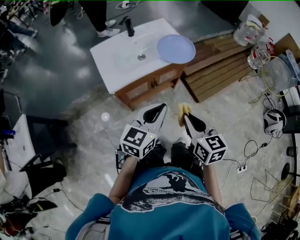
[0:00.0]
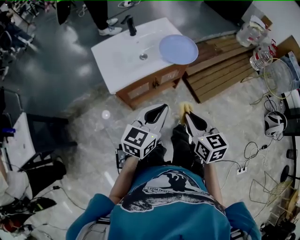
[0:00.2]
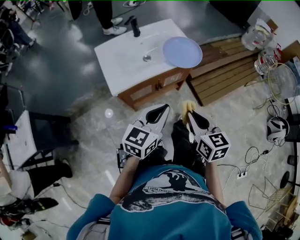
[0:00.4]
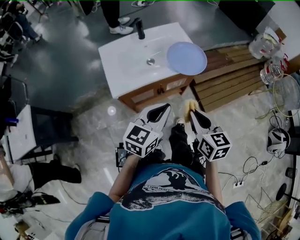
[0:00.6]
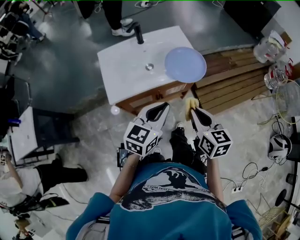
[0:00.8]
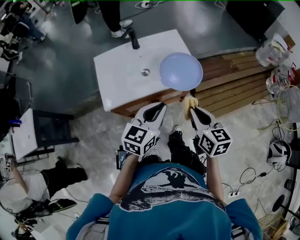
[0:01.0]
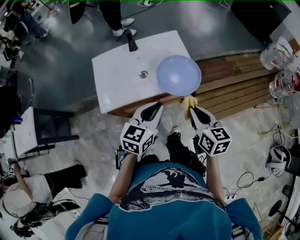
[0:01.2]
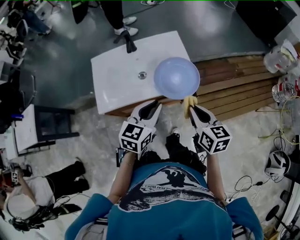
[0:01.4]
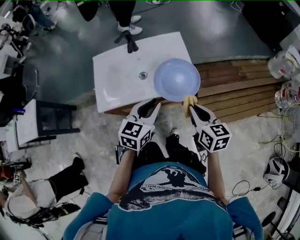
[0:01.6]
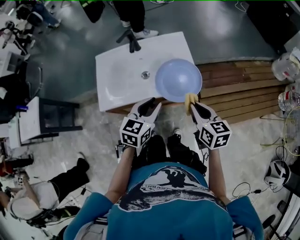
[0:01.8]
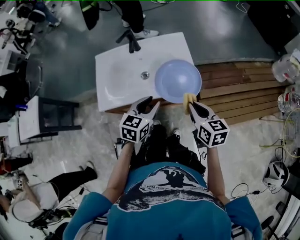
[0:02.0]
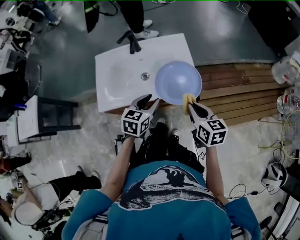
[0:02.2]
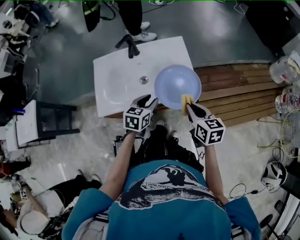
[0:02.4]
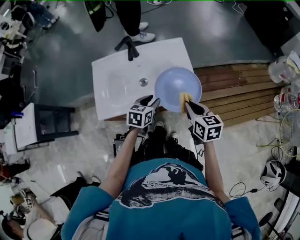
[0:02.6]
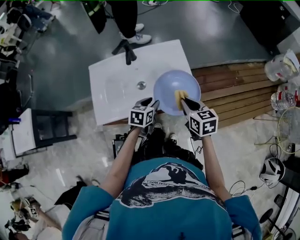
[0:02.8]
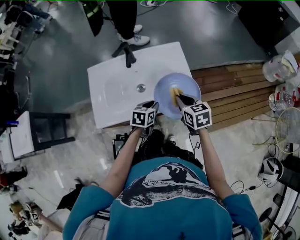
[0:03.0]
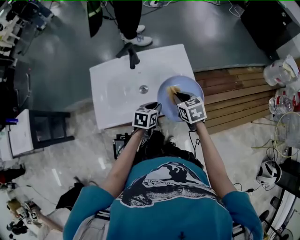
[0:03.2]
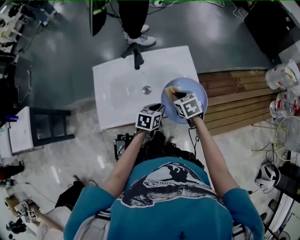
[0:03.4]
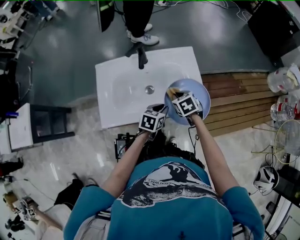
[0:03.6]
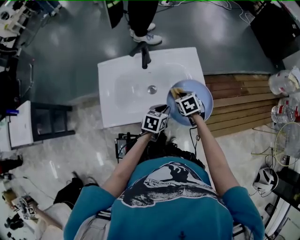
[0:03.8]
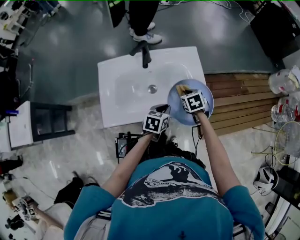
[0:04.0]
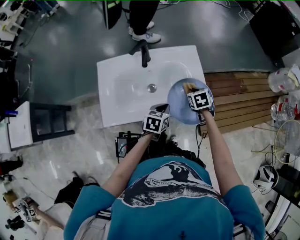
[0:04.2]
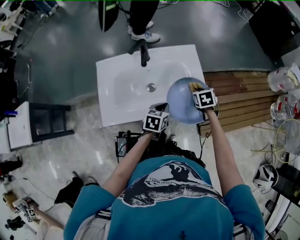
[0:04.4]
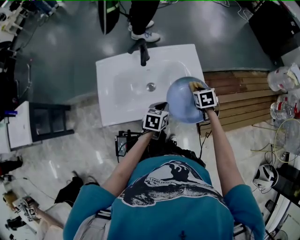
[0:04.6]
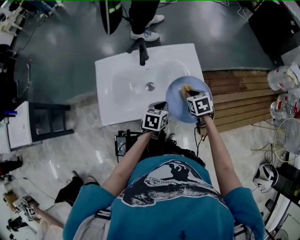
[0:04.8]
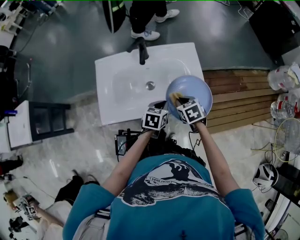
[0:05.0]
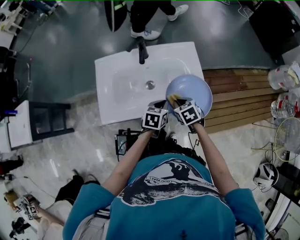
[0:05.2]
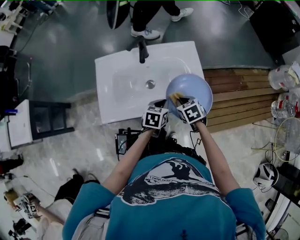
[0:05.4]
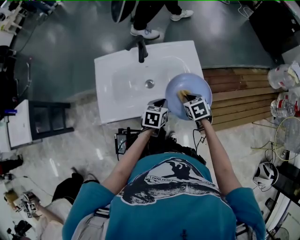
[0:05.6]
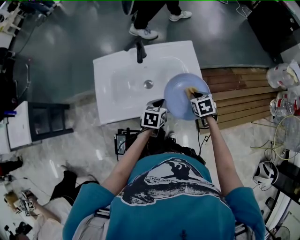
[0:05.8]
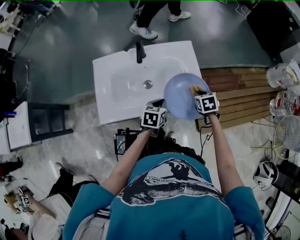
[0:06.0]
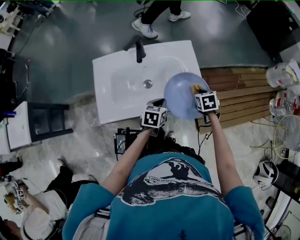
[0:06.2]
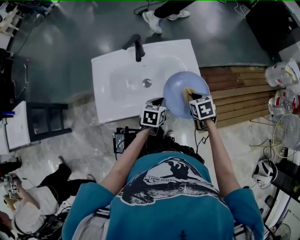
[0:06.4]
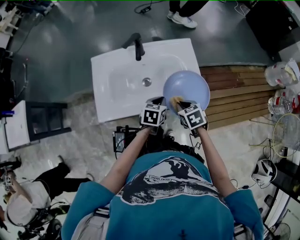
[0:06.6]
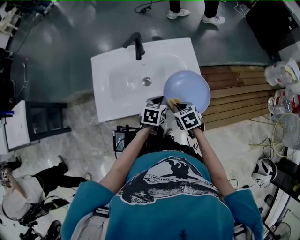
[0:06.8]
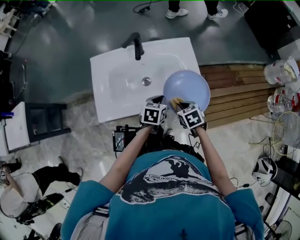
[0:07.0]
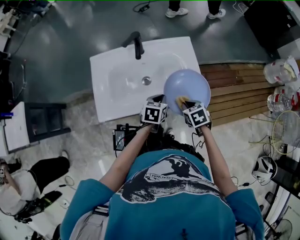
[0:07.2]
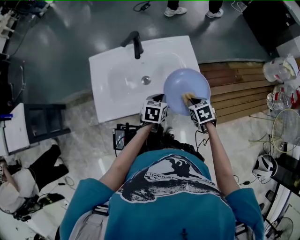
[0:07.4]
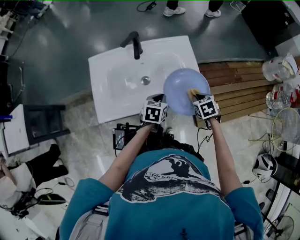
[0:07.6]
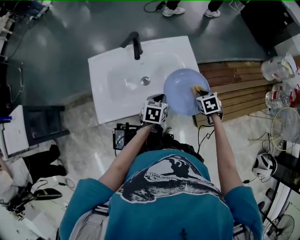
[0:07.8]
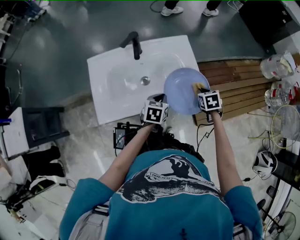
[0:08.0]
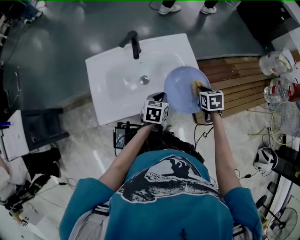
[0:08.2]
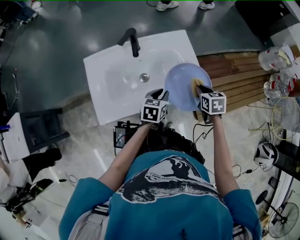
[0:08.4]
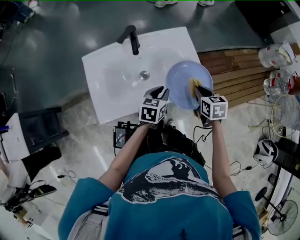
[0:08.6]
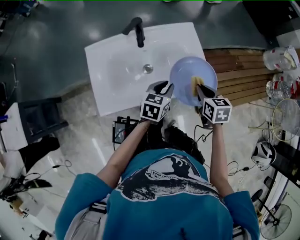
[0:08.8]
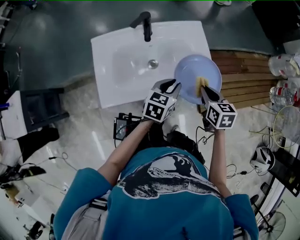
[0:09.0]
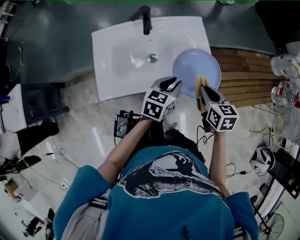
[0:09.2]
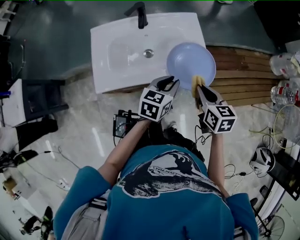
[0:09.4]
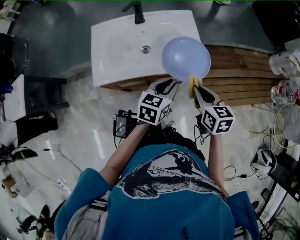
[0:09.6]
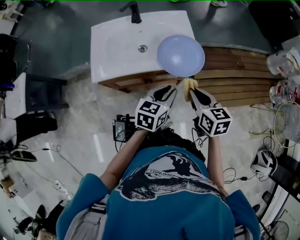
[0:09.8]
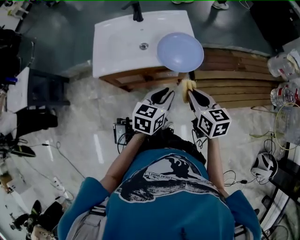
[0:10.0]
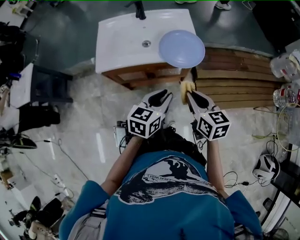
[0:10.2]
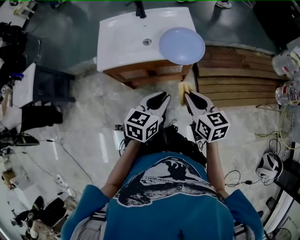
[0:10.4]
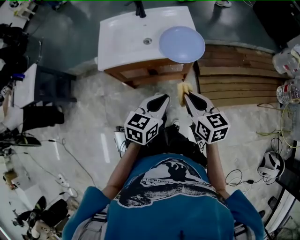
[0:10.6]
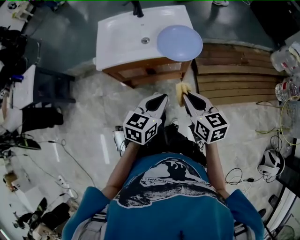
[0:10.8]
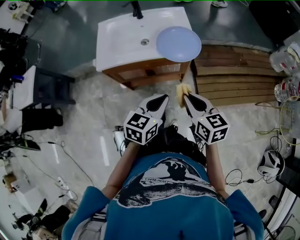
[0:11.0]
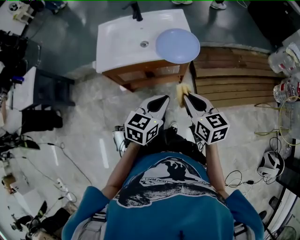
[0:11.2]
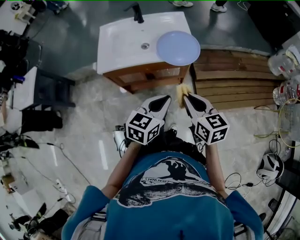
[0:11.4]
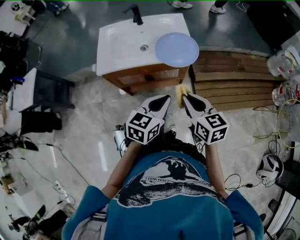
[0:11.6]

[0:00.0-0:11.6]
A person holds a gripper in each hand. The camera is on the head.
0.0 to 1.4 s: The left gripper heads forward, covering some 25 cm, and swivels about 20 degrees; the right gripper travels forward and to the right by approximately 30 cm.
1.4 to 2.8 s: The right gripper goes about 15 cm forward and downward. The left gripper travels downward and forward by approximately 20 cm, and rotates some 20 degrees.
2.8 to 4.4 s: The right gripper goes some 15 cm forward and downward, and turns by some 30 degrees. Meanwhile the left gripper closes up.
4.4 to 5.8 s: The right gripper reaches approximately 10 cm to the left, then returns.
5.8 to 7.2 s: The right gripper heads backward, covering roughly 10 cm, and goes to the left and returns, approximately 10 cm each way.
7.2 to 8.8 s: The right gripper shifts some 10 cm upward, travels to the right and back again, roughly 10 cm each way, and swivels roughly 30 degrees. The left gripper heads upward, covering about 5 cm.
8.8 to 10.2 s: Both grippers move backward, roughly 25 cm. The right gripper rotates approximately 20 degrees.
10.2 to 11.6 s: The left gripper shifts by approximately 5 cm.

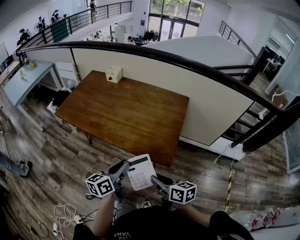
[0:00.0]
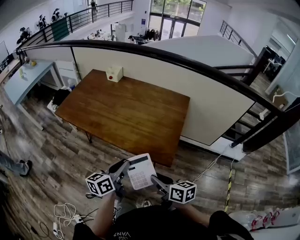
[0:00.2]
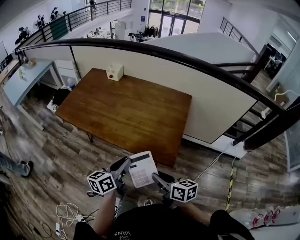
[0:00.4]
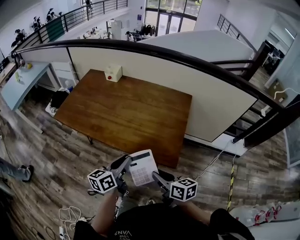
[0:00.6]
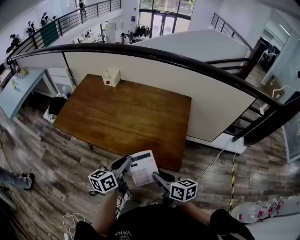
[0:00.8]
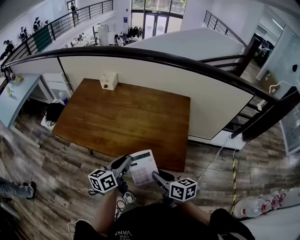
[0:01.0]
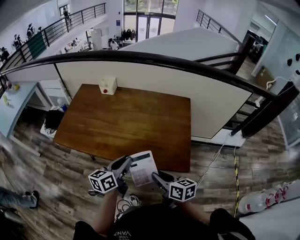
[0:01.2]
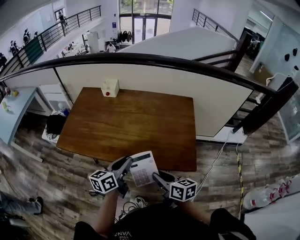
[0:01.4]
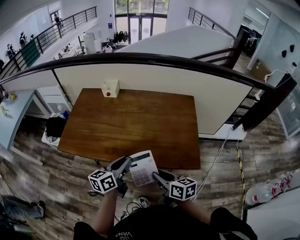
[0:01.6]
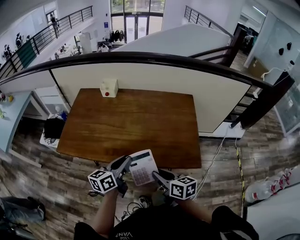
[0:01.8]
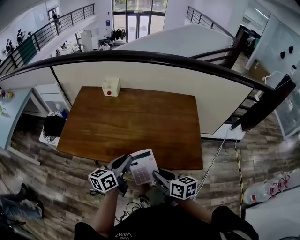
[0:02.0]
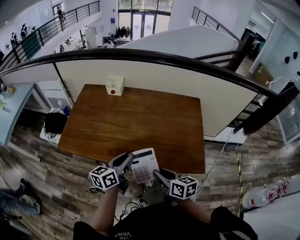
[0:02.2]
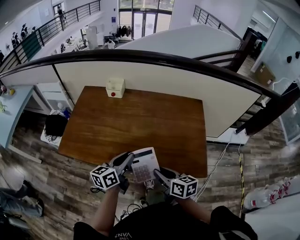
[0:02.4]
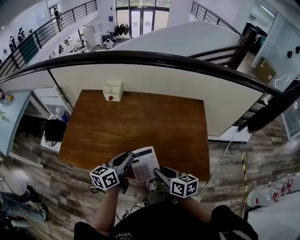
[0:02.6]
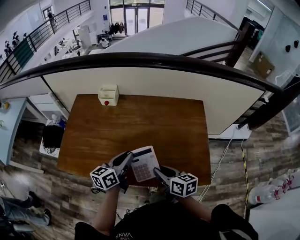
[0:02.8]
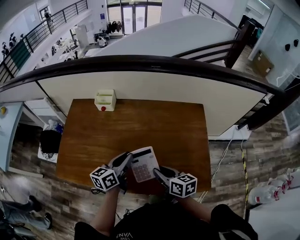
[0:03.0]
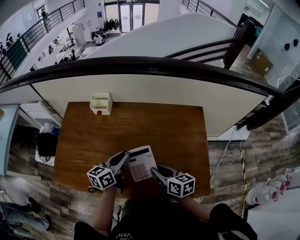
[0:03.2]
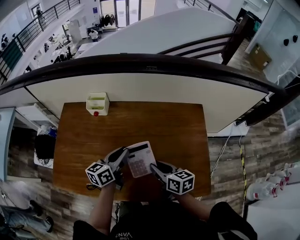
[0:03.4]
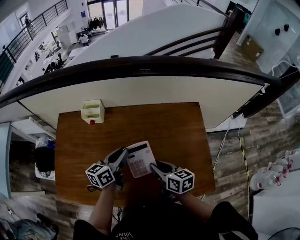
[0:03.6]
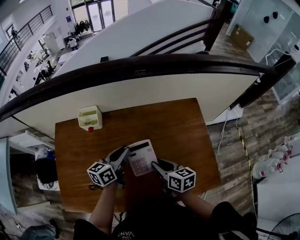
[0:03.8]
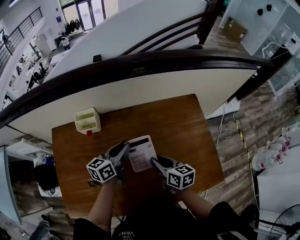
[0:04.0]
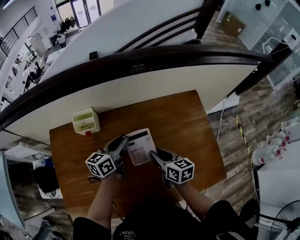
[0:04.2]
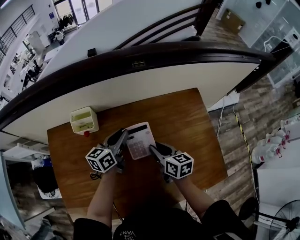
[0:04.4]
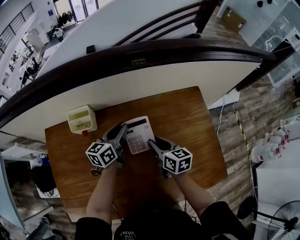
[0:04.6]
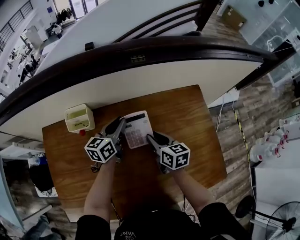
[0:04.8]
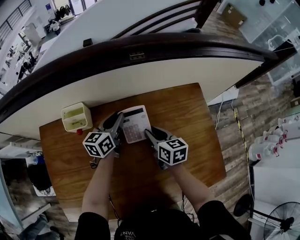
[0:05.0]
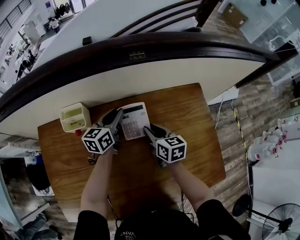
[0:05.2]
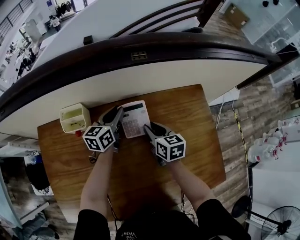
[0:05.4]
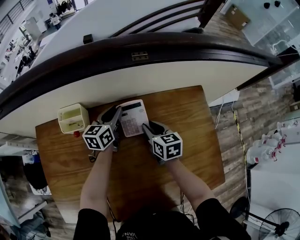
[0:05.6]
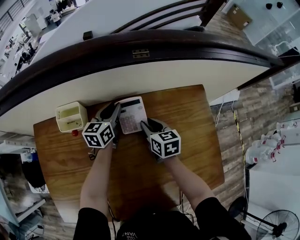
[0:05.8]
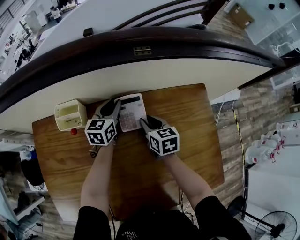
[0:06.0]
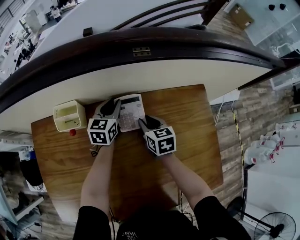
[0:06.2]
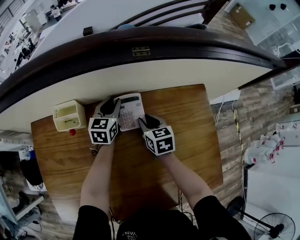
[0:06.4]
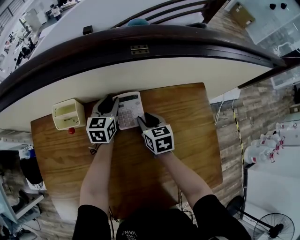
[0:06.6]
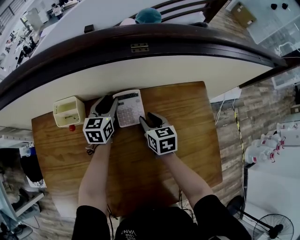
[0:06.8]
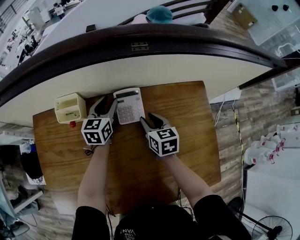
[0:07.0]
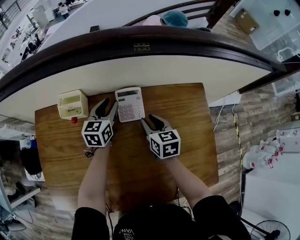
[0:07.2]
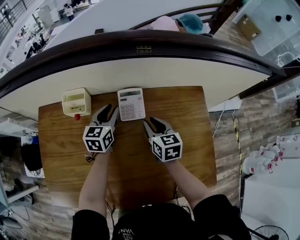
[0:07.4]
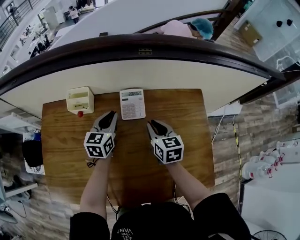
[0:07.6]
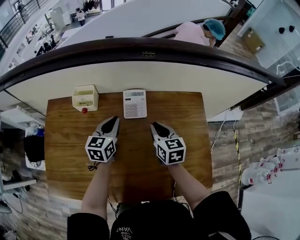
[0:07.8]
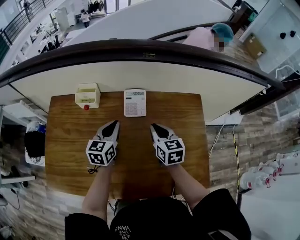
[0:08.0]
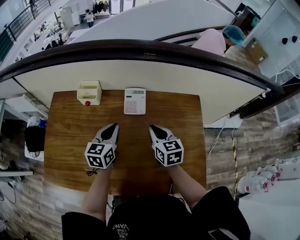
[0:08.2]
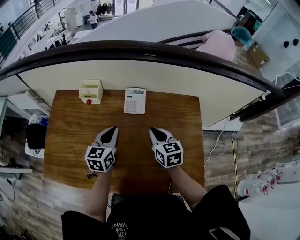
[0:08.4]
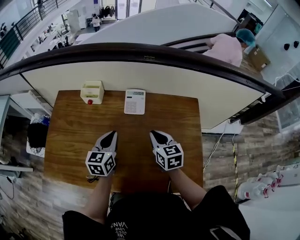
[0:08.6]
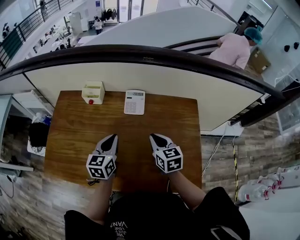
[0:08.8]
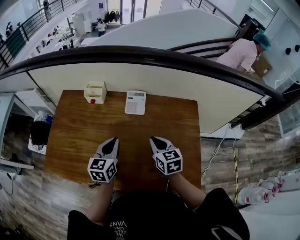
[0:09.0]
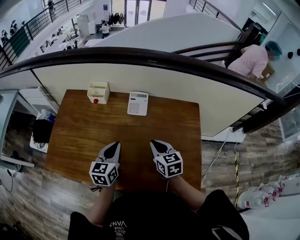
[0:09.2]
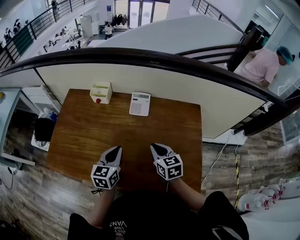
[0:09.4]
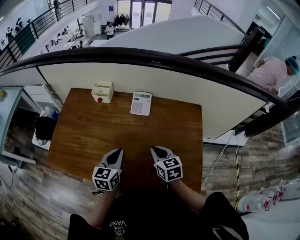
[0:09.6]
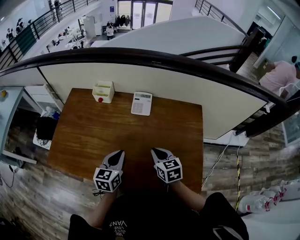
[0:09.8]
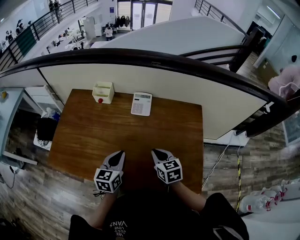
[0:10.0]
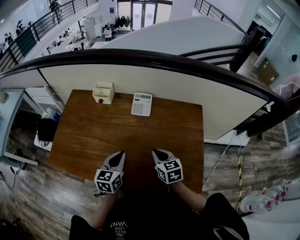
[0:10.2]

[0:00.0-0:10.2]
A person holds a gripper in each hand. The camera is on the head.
0.0 to 1.4 s: The right gripper moves to the left and forward, some 20 cm; the left gripper travels forward and to the left by about 20 cm.
1.4 to 3.0 s: The two grippers go some 20 cm forward.
3.0 to 4.4 s: The grippers both shift forward by roughly 20 cm. The right gripper turns by some 20 degrees.
4.4 to 5.8 s: The two grippers go some 15 cm forward and downward.
5.8 to 7.2 s: The grippers stay close to where they were, moving slightly.
7.2 to 8.8 s: The right gripper goes some 15 cm backward and upward, and closes its fingers. Meanwhile the left gripper goes approximately 25 cm backward, and closes.
8.8 to 10.2 s: The grippers both shift backward by approximately 10 cm.

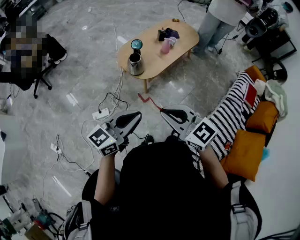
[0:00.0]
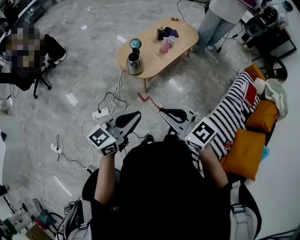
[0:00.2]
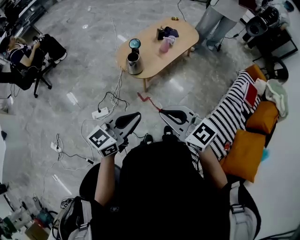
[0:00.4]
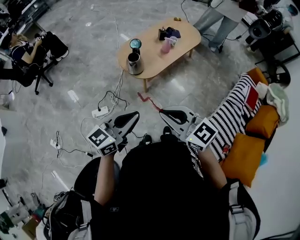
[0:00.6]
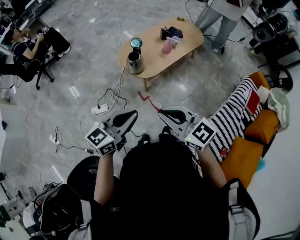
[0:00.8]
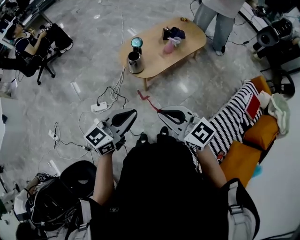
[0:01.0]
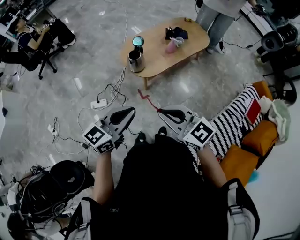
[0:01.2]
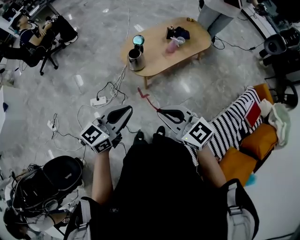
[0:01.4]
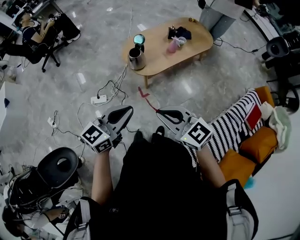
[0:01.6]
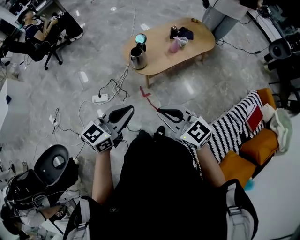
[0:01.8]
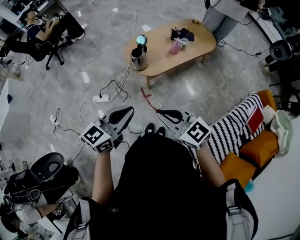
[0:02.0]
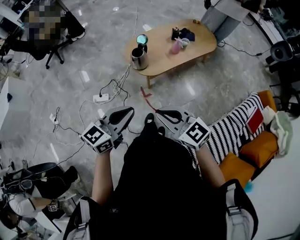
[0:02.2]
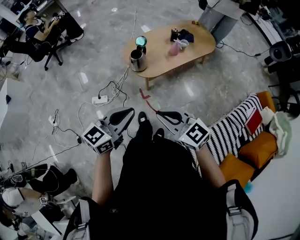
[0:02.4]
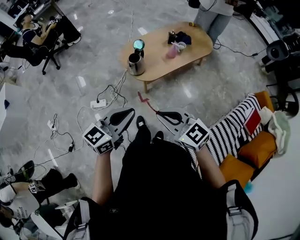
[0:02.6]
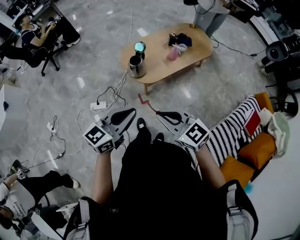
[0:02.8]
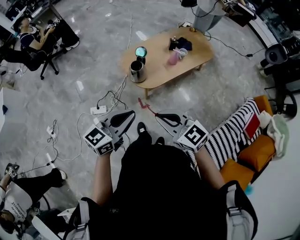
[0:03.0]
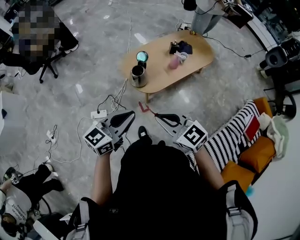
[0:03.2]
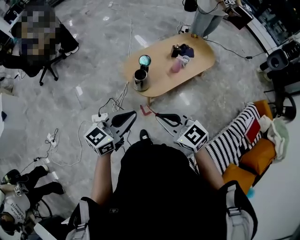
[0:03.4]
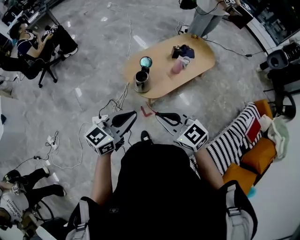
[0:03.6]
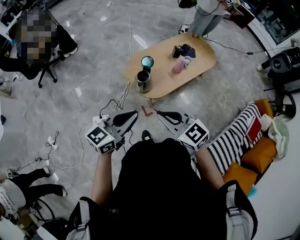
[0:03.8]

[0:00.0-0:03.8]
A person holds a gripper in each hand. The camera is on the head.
0.0 to 1.2 s: The two grippers go some 10 cm to the right.
1.2 to 2.6 s: The right gripper changes place by about 5 cm.
2.6 to 3.8 s: Both grippers travel together forward and to the left, approximately 15 cm.
